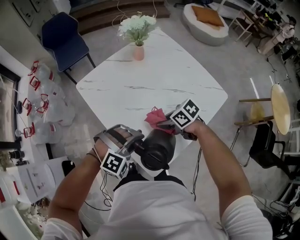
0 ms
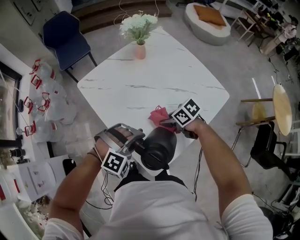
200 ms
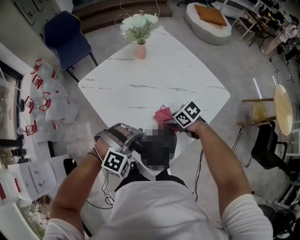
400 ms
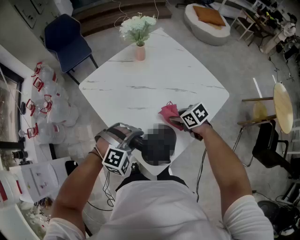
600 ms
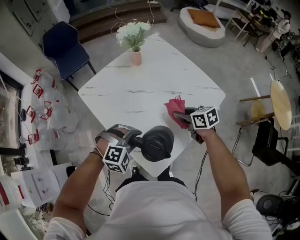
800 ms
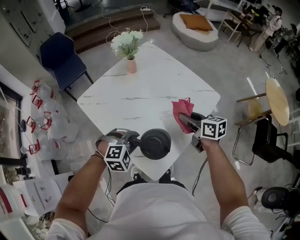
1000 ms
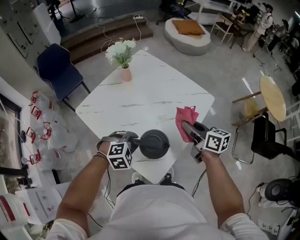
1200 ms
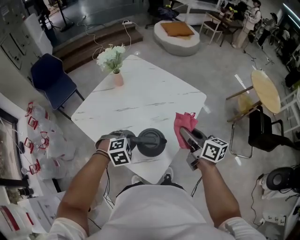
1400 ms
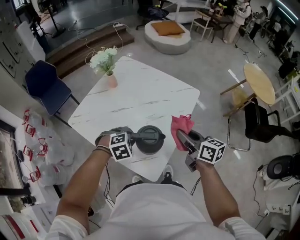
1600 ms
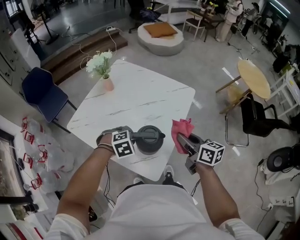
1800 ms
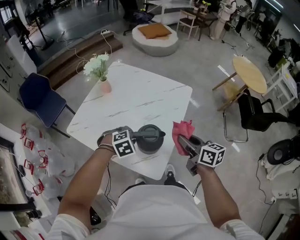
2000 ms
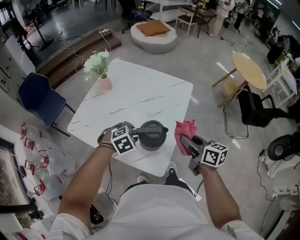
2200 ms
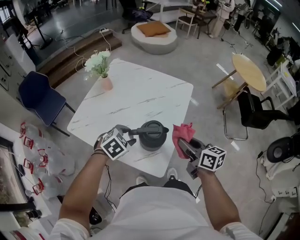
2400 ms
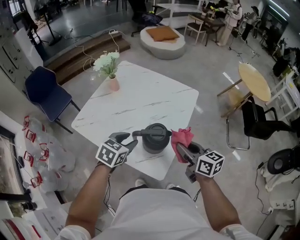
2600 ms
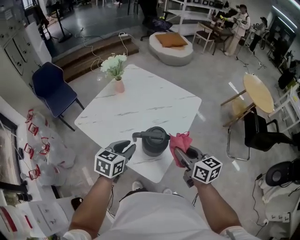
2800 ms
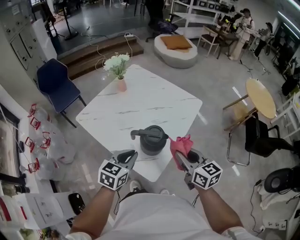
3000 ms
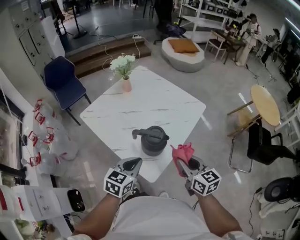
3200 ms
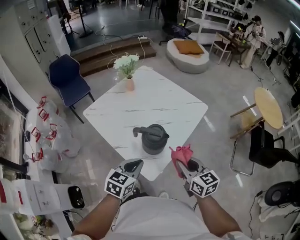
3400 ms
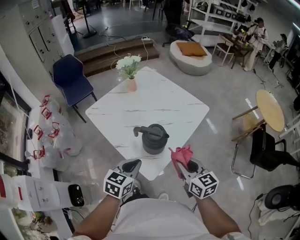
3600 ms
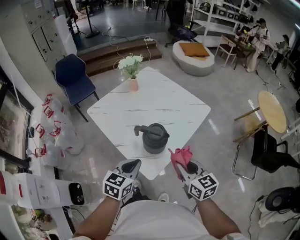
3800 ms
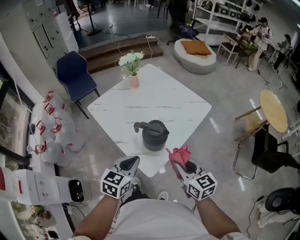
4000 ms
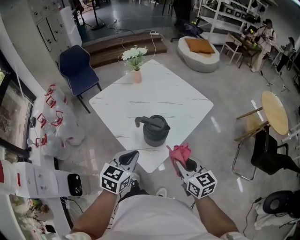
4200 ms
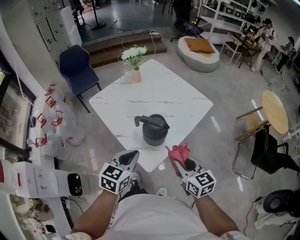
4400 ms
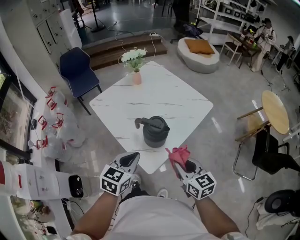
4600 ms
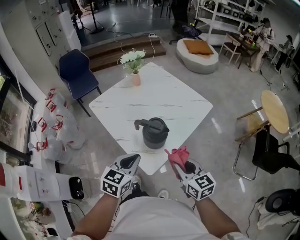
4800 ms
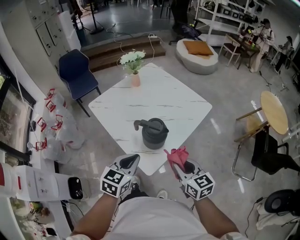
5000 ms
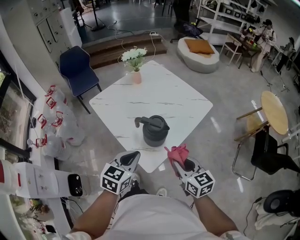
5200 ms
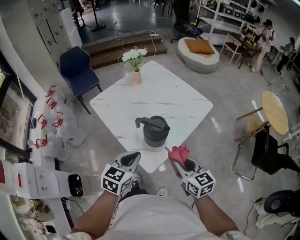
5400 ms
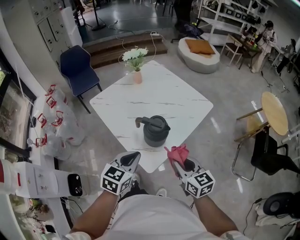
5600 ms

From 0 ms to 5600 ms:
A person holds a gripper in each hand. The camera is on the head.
From 0 ms to 1400 ms: The right gripper heads upward, covering approximately 15 cm, and tips its fingers upward by some 30 degrees, while the left gripper moves approximately 5 cm, and rotates about 30 degrees.
From 1400 ms to 2800 ms: The right gripper travels backward by roughly 10 cm. The left gripper goes some 10 cm upward, twists some 50 degrees counterclockwise, seen from behind, and opens, then closes again.
From 2800 ms to 4200 ms: The left gripper goes approximately 10 cm backward, and closes; the right gripper is displaced backward by some 10 cm.
From 4200 ms to 5600 ms: Both grippers stay about where they are.

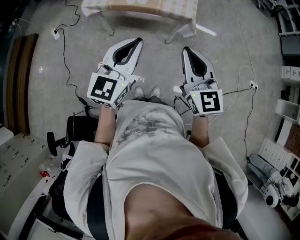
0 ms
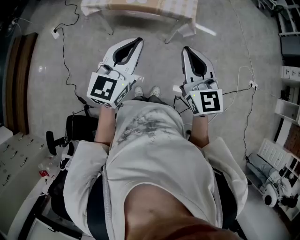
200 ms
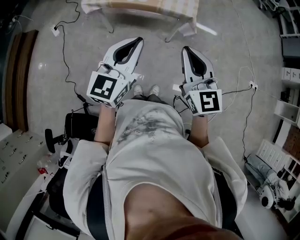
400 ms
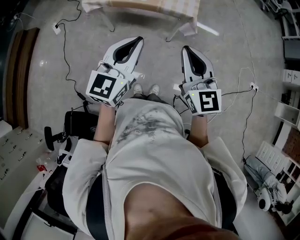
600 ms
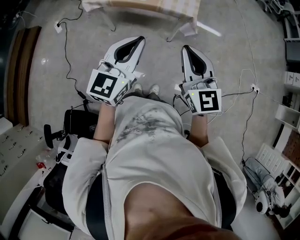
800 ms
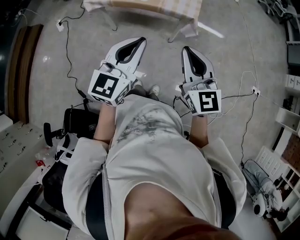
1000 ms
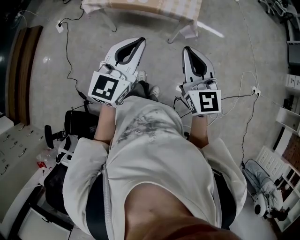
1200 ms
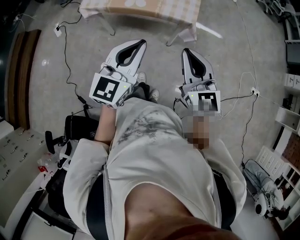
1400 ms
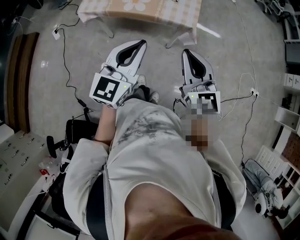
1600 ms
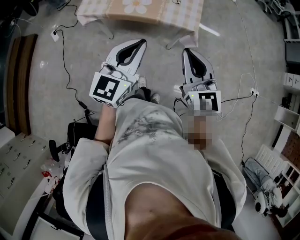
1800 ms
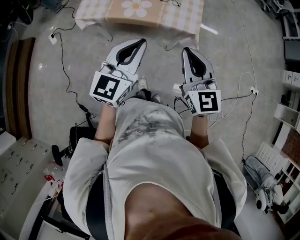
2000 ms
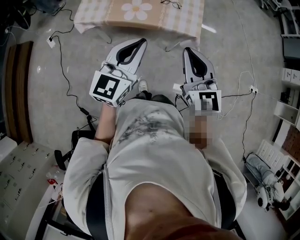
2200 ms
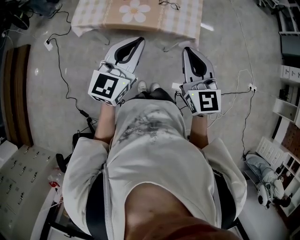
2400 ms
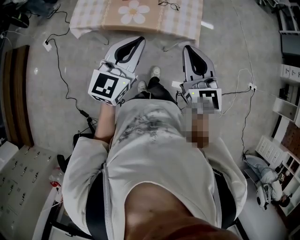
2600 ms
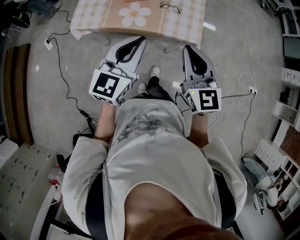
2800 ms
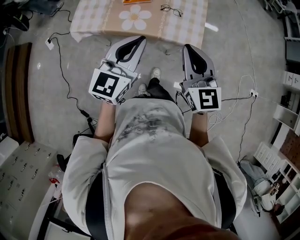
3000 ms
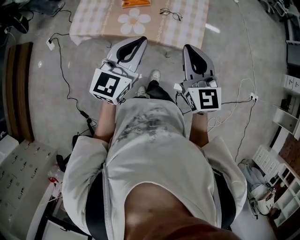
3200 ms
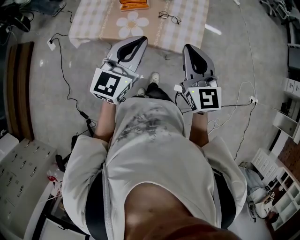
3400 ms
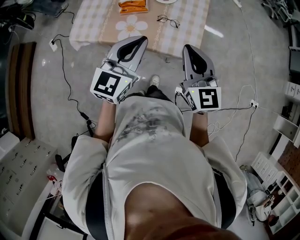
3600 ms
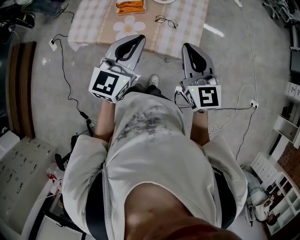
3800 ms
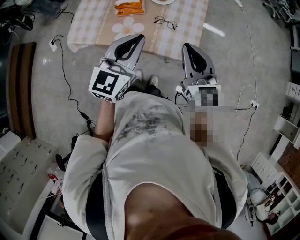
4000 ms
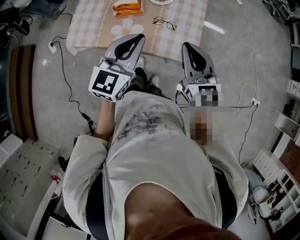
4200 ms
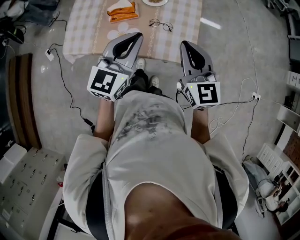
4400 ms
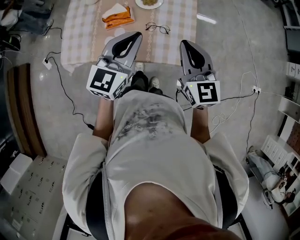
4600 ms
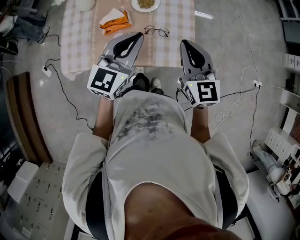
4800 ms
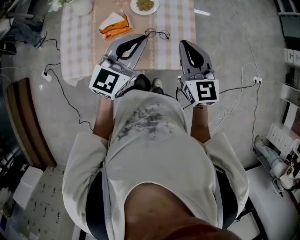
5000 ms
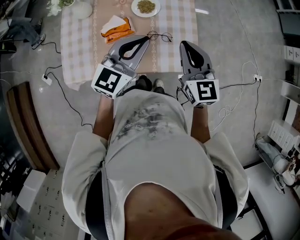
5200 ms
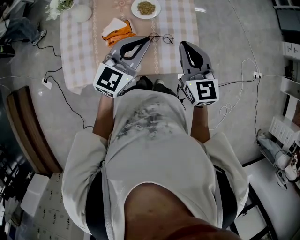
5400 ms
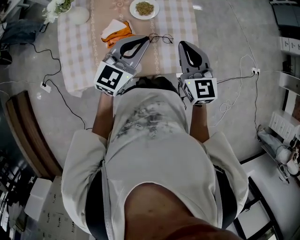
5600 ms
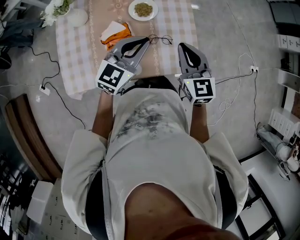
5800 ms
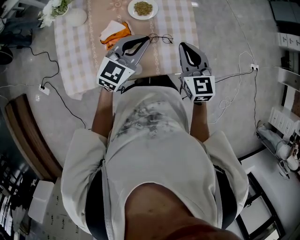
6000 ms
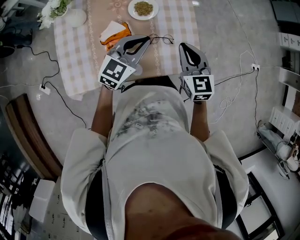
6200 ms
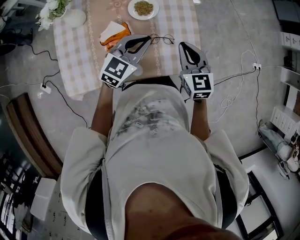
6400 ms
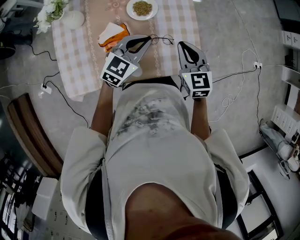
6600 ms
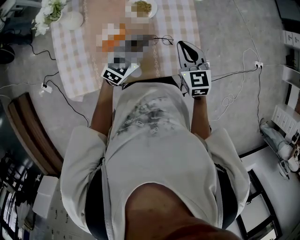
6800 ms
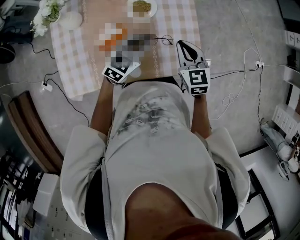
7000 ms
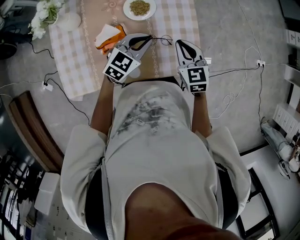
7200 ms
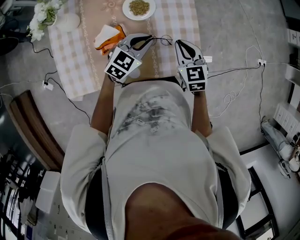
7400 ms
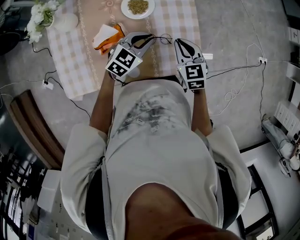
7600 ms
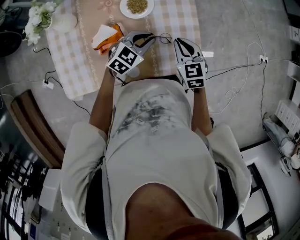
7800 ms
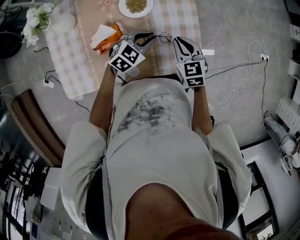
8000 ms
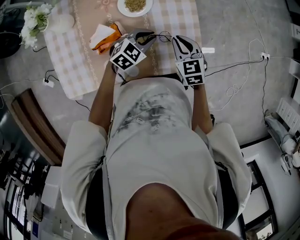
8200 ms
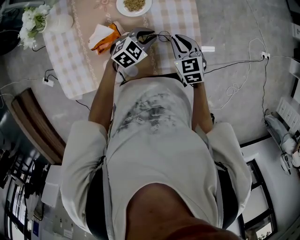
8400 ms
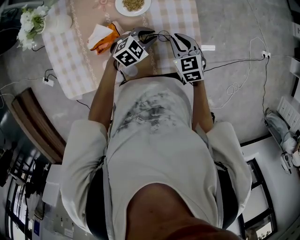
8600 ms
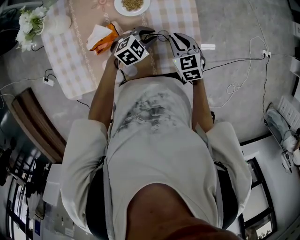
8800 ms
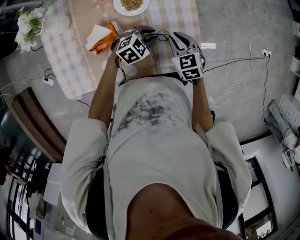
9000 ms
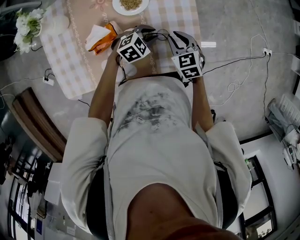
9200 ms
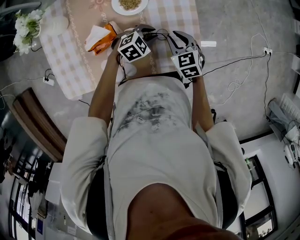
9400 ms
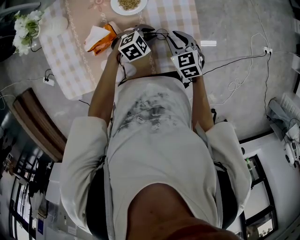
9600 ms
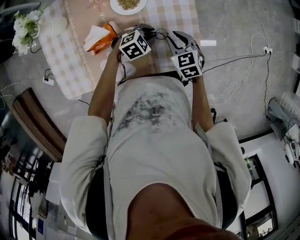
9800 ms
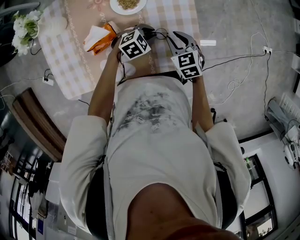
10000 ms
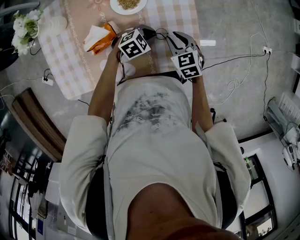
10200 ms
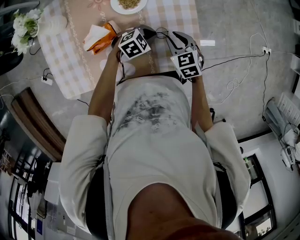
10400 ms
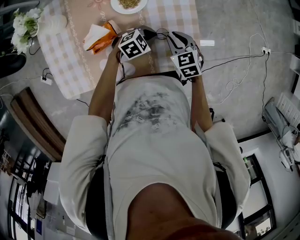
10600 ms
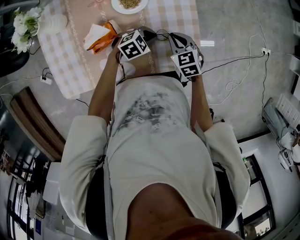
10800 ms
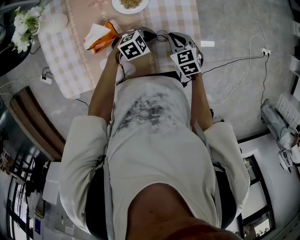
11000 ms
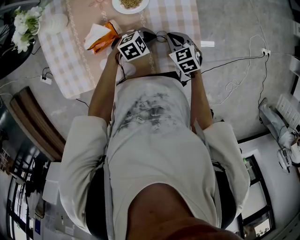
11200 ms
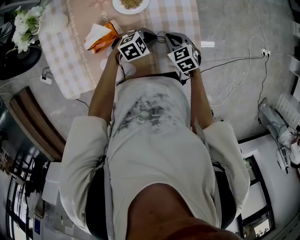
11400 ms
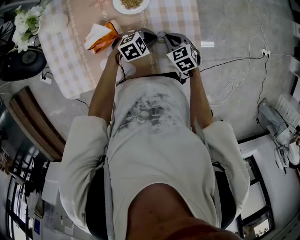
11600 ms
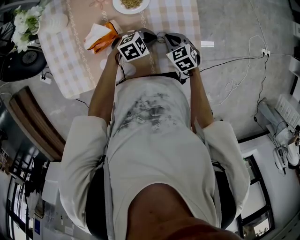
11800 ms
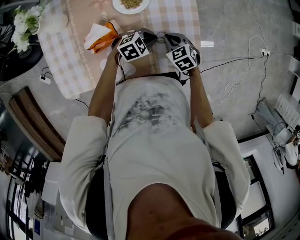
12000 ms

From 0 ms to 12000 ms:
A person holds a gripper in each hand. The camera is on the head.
From 0 ms to 1600 ms: Both grippers travel together forward, roughly 10 cm.
From 1600 ms to 3000 ms: Both grippers travel together forward, roughly 20 cm.
From 3000 ms to 4400 ms: The two grippers go approximately 15 cm forward.
From 4400 ms to 6000 ms: The left gripper is displaced forward and downward by roughly 15 cm, and changes its angle by approximately 30 degrees. Meanwhile the right gripper shifts about 15 cm forward, downward and to the left, and swivels roughly 20 degrees.
From 6000 ms to 7600 ms: Both grippers travel together downward and forward, roughly 15 cm. The left gripper turns by some 20 degrees.
From 7600 ms to 9000 ms: The right gripper heads downward, covering some 5 cm, while the left gripper goes approximately 10 cm downward, and swivels roughly 20 degrees.
From 9000 ms to 10400 ms: The grippers stay close to where they were, moving slightly.
From 10400 ms to 12000 ms: The right gripper changes place by about 5 cm, and closes.

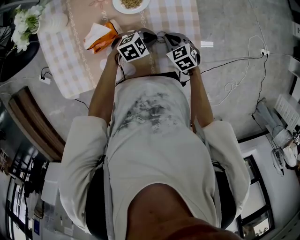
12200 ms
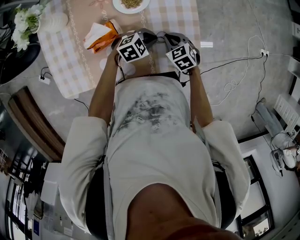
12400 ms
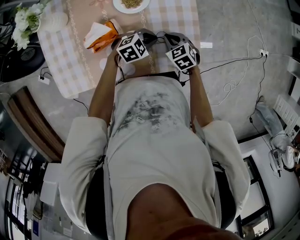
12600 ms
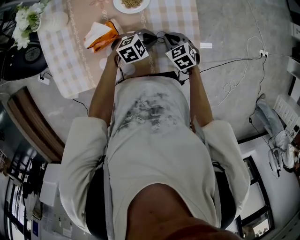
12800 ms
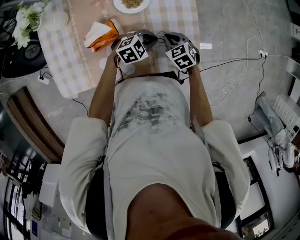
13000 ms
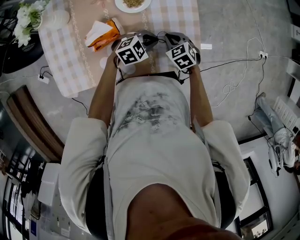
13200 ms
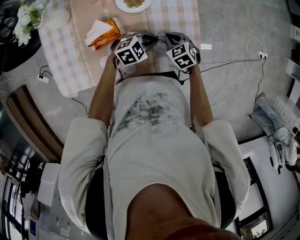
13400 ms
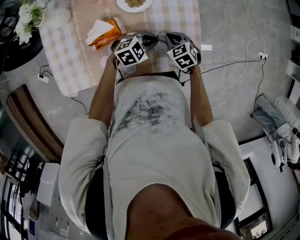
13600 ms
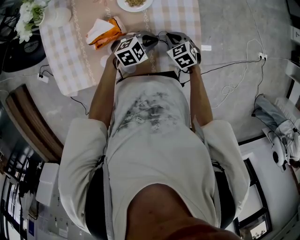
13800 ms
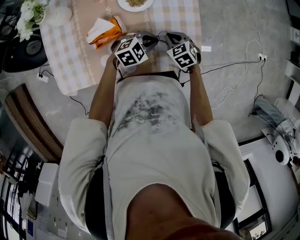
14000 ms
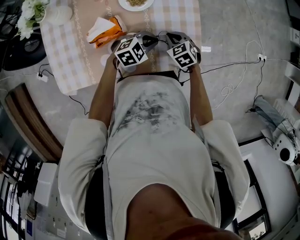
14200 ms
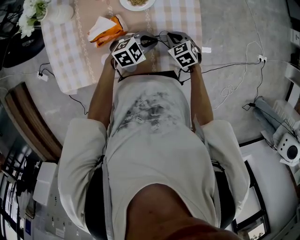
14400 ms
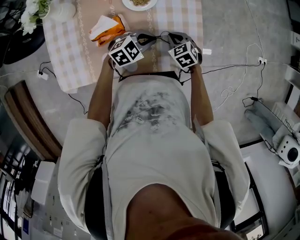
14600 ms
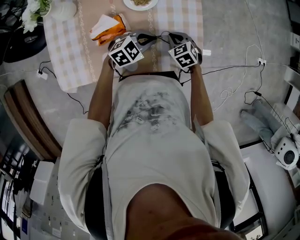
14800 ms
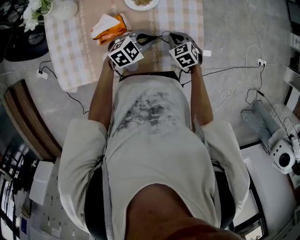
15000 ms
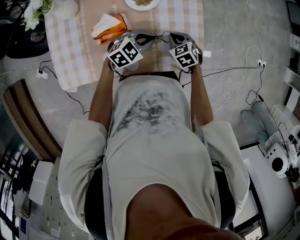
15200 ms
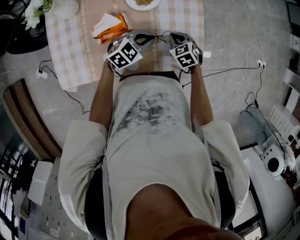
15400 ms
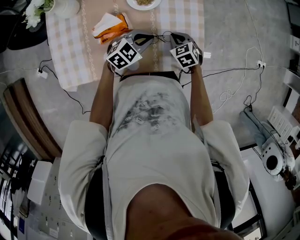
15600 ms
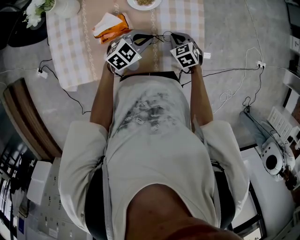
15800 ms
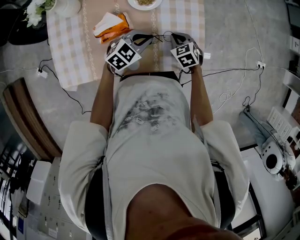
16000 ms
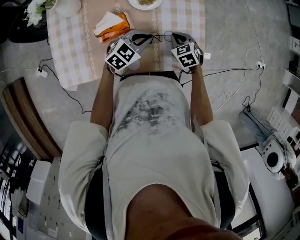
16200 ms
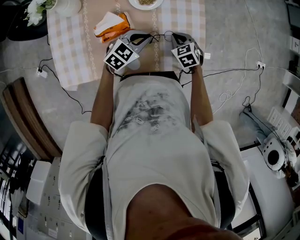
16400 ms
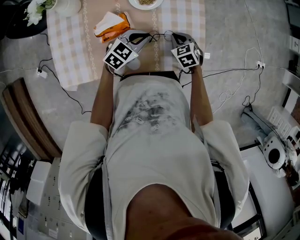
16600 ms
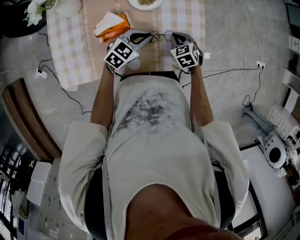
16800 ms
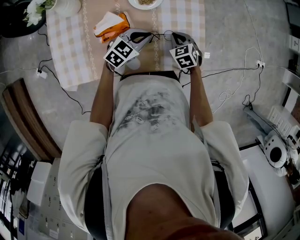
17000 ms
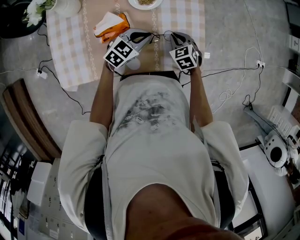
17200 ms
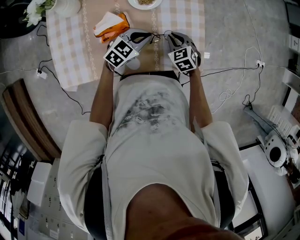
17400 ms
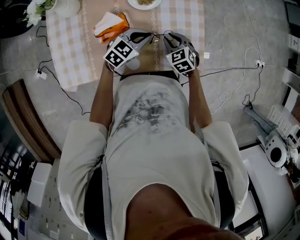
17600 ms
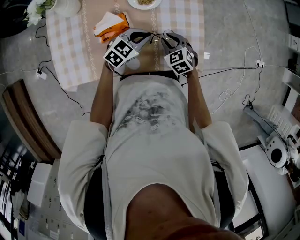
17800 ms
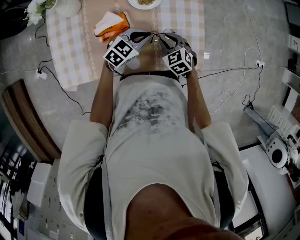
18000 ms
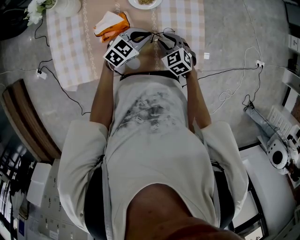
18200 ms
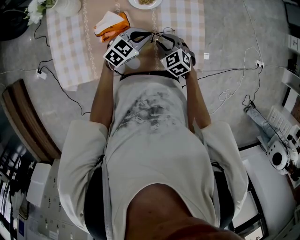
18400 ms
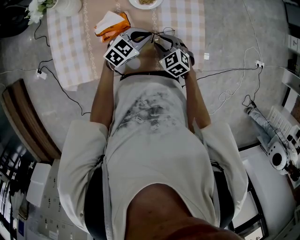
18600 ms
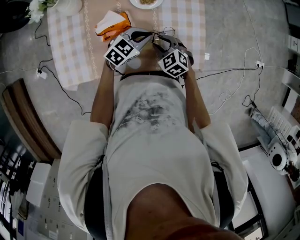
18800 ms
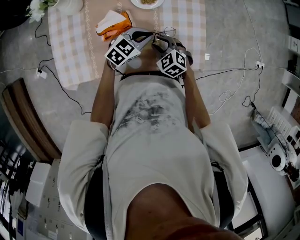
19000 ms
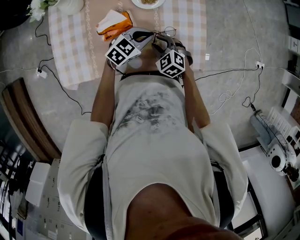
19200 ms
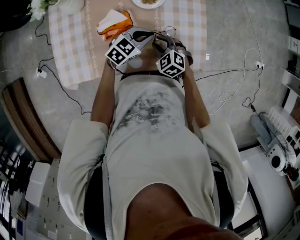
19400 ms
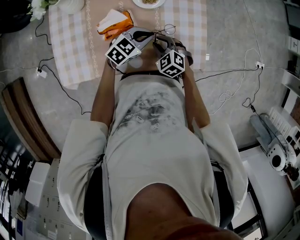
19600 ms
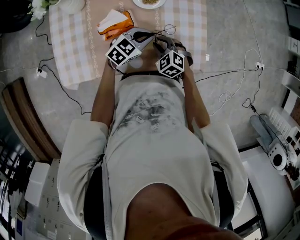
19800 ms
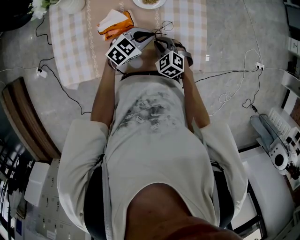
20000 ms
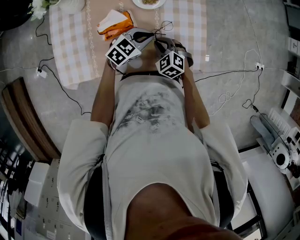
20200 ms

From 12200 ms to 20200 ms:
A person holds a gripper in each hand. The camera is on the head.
From 12200 ms to 13800 ms: The grippers make only small movements.
From 13800 ms to 15400 ms: The left gripper changes place by some 5 cm.
From 15400 ms to 17000 ms: The grippers stay close to where they were, moving slightly.
From 17000 ms to 18600 ms: The right gripper moves to the left and backward, some 10 cm, and opens.
From 18600 ms to 20200 ms: The right gripper closes.
